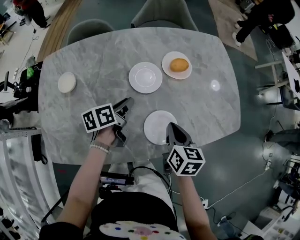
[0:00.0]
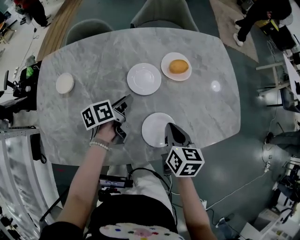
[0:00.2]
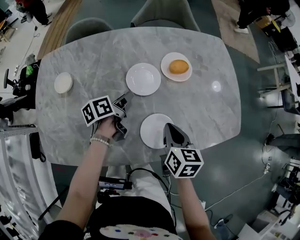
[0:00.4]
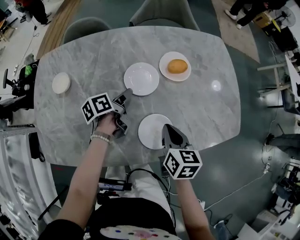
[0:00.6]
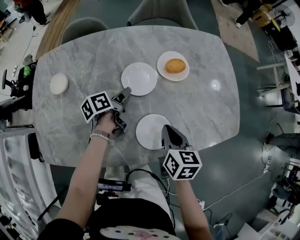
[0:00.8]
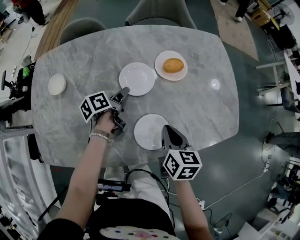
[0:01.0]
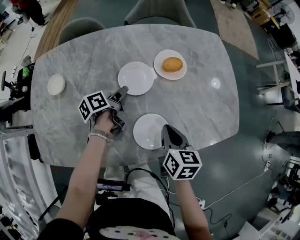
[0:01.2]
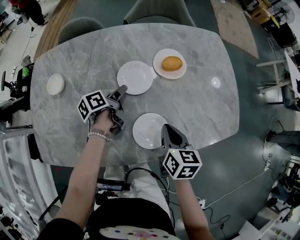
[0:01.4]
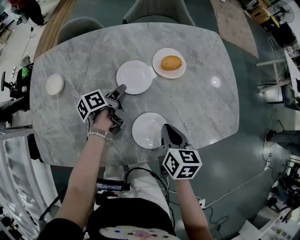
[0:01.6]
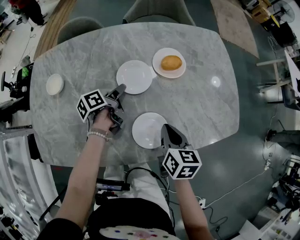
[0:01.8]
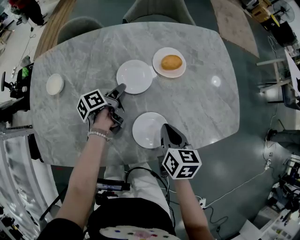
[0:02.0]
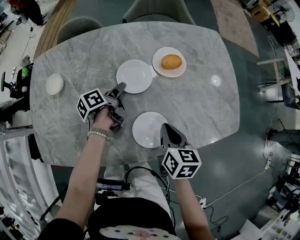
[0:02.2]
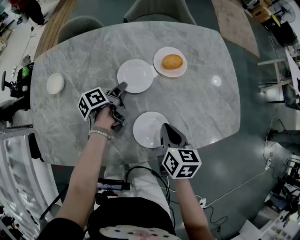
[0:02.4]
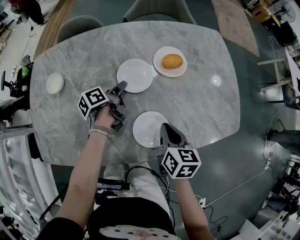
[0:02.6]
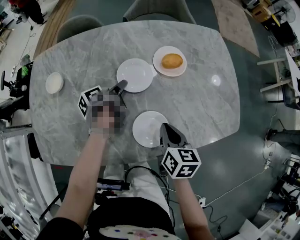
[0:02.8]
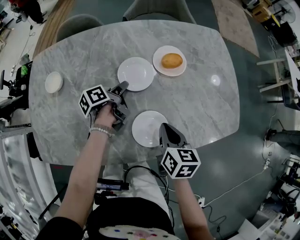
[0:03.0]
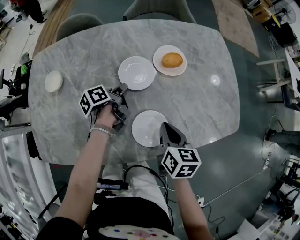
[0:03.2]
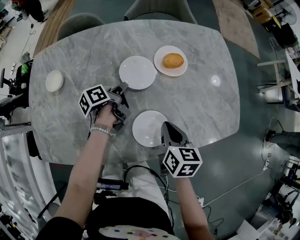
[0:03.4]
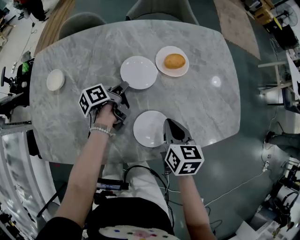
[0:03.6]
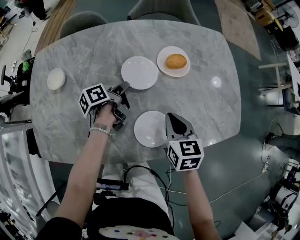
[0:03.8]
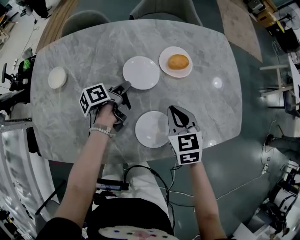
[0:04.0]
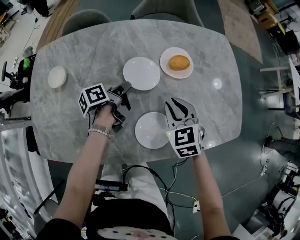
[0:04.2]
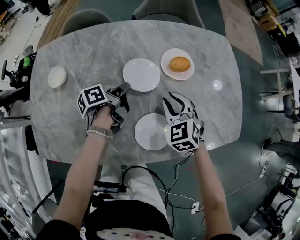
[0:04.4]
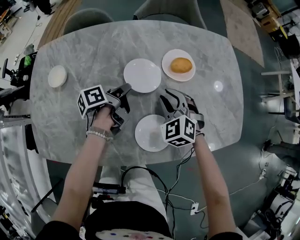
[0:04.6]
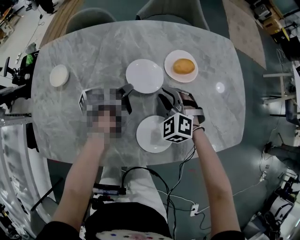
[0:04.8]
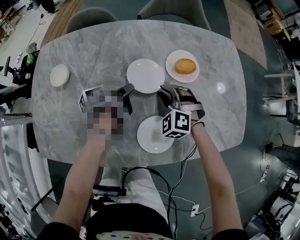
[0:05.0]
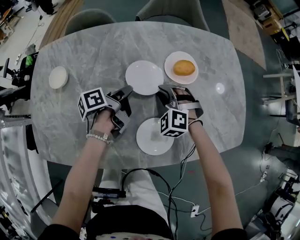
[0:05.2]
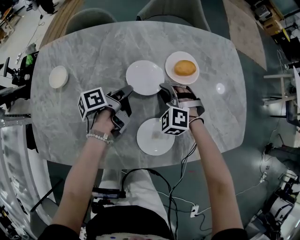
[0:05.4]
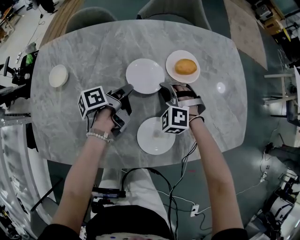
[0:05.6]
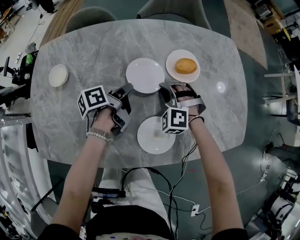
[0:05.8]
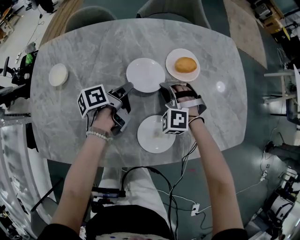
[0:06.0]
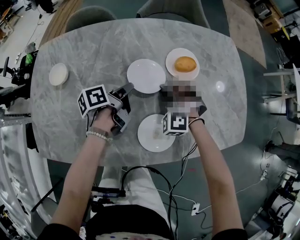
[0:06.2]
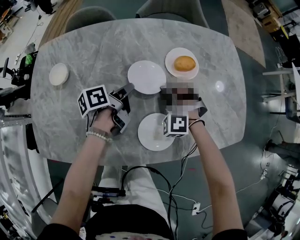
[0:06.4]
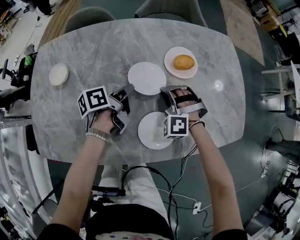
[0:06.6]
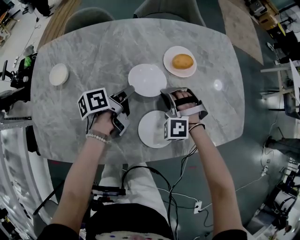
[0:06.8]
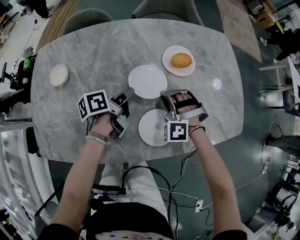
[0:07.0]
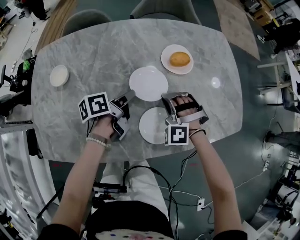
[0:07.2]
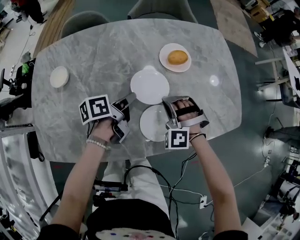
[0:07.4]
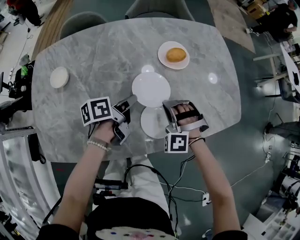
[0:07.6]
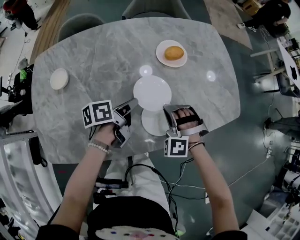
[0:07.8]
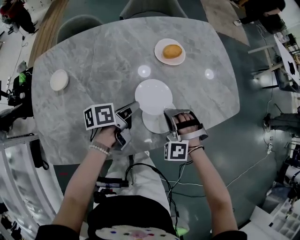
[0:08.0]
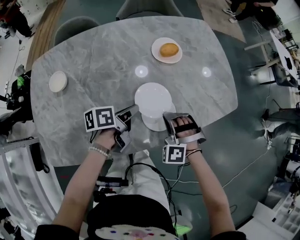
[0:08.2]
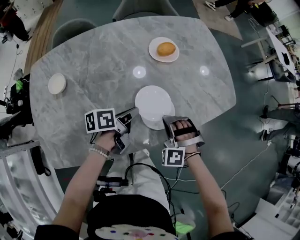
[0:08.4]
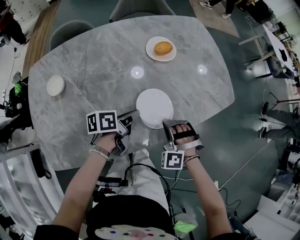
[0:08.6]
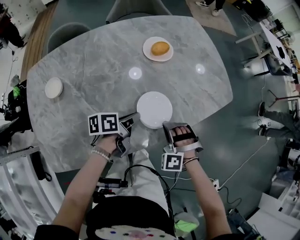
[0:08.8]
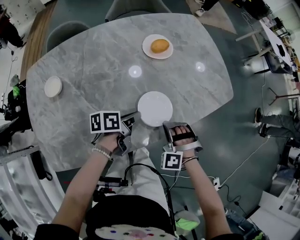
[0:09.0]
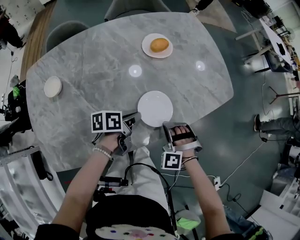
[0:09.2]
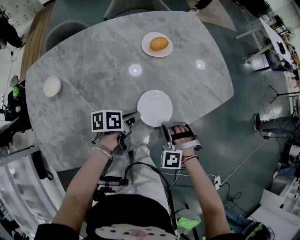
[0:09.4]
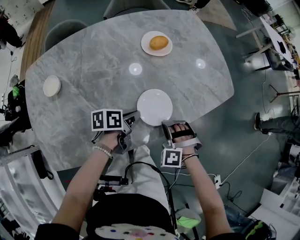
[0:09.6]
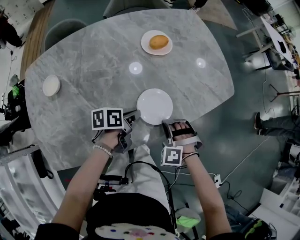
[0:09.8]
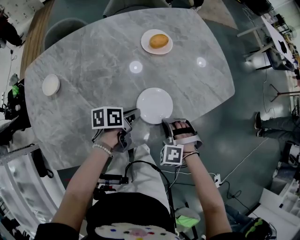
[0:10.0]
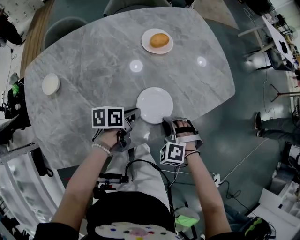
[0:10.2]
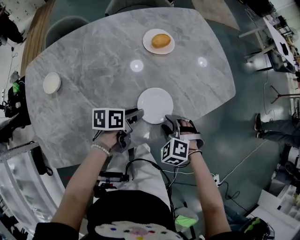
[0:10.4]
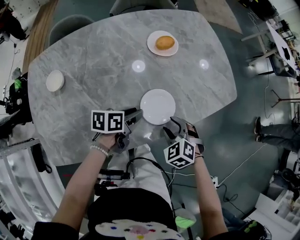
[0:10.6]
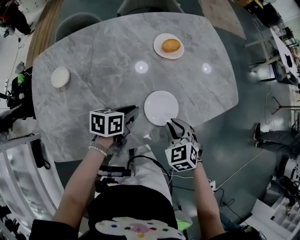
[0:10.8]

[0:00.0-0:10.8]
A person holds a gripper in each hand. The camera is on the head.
0:00.0 to 0:01.6: The left gripper is displaced forward by approximately 5 cm, and turns by roughly 20 degrees.
0:01.6 to 0:03.0: The two grippers keep their place.
0:03.0 to 0:04.6: The right gripper shifts about 10 cm forward, rolls counterclockwise, seen from behind, by about 70 degrees, and opens. Meanwhile the left gripper closes its fingers.
0:04.6 to 0:06.2: The right gripper moves roughly 5 cm, and turns by approximately 40 degrees.
0:06.2 to 0:07.8: The left gripper heads backward, covering approximately 10 cm. Meanwhile the right gripper is displaced backward and to the right by approximately 15 cm.
0:07.8 to 0:09.2: The left gripper goes some 10 cm to the right and backward, and swivels approximately 20 degrees. Meanwhile the right gripper travels backward and to the right by roughly 10 cm.
0:09.2 to 0:10.8: The left gripper changes place by about 5 cm, while the right gripper twists some 50 degrees clockwise, seen from behind, and opens, then closes once more.

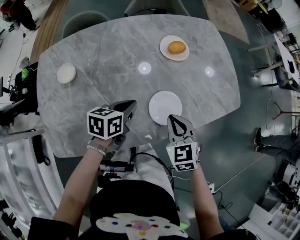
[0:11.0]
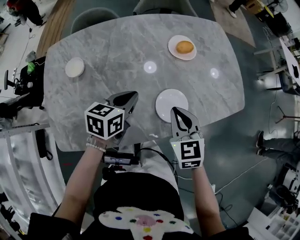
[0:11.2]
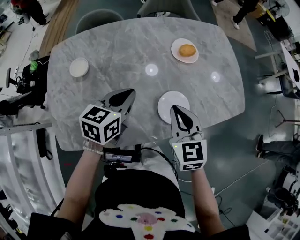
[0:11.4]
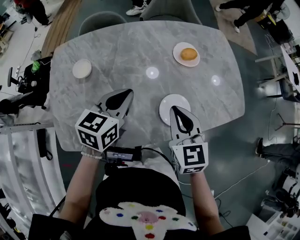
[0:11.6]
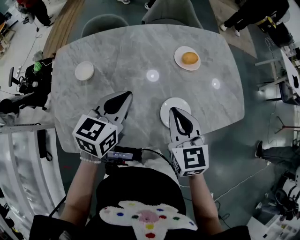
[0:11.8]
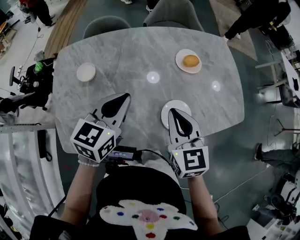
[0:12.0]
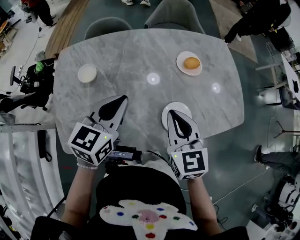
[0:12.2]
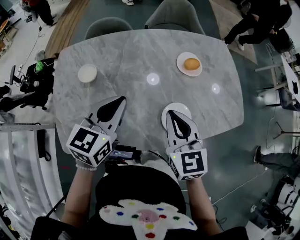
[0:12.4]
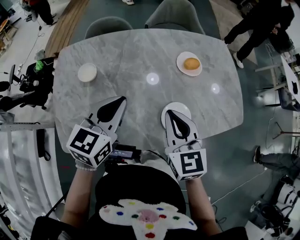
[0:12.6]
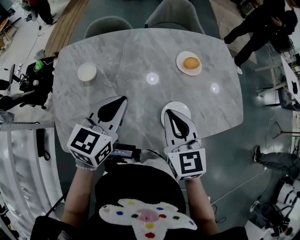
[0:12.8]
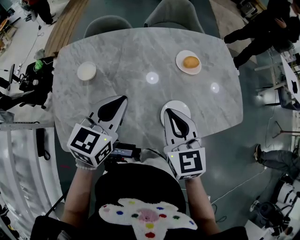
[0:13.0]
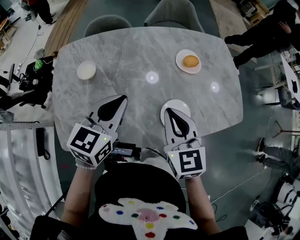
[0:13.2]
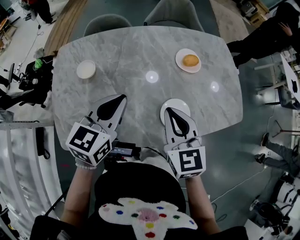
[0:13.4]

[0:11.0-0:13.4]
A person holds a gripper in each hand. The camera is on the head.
0:11.0 to 0:12.2: The two grippers go some 20 cm upward and to the left. The left gripper swivels roughly 30 degrees.
0:12.2 to 0:13.4: The grippers make only small movements.

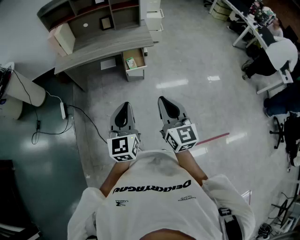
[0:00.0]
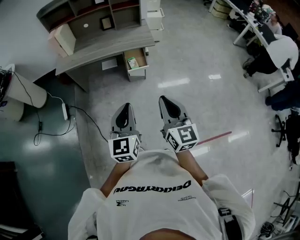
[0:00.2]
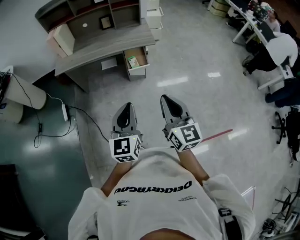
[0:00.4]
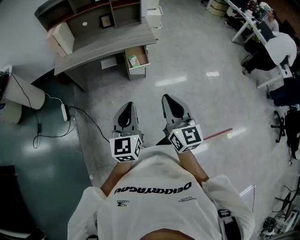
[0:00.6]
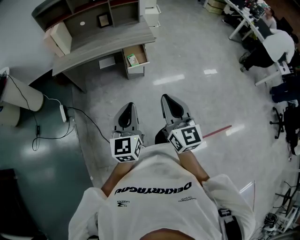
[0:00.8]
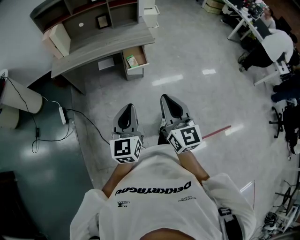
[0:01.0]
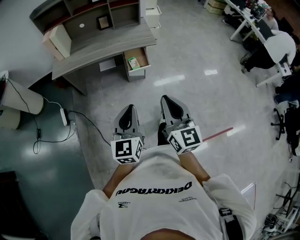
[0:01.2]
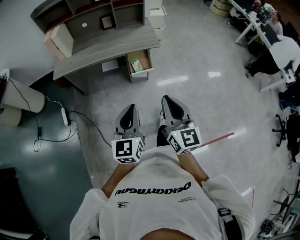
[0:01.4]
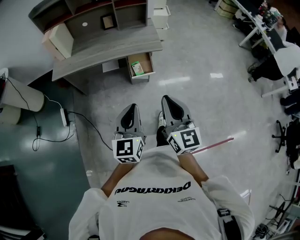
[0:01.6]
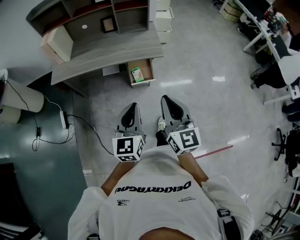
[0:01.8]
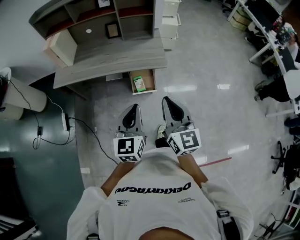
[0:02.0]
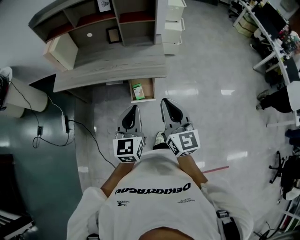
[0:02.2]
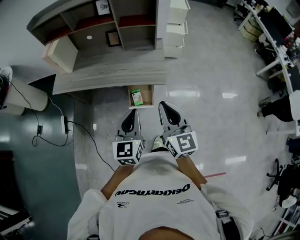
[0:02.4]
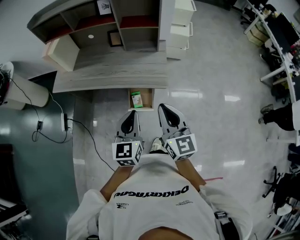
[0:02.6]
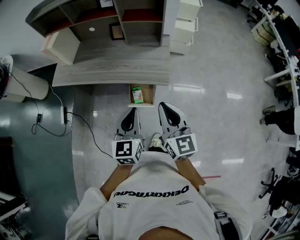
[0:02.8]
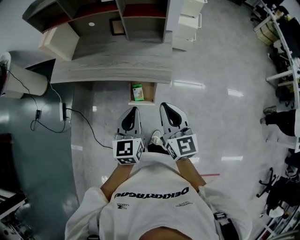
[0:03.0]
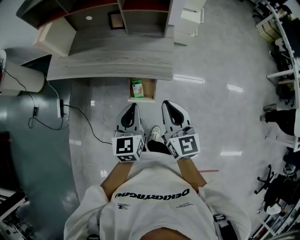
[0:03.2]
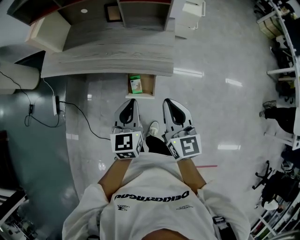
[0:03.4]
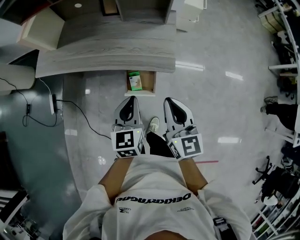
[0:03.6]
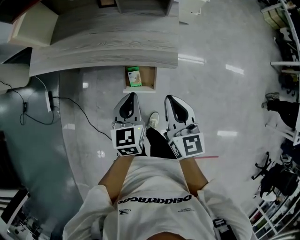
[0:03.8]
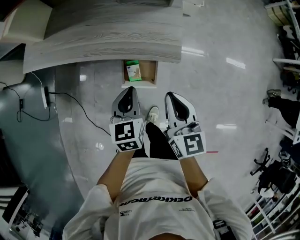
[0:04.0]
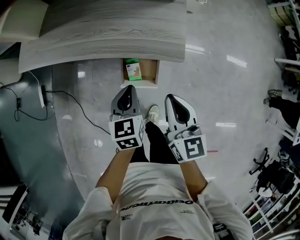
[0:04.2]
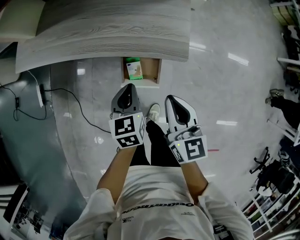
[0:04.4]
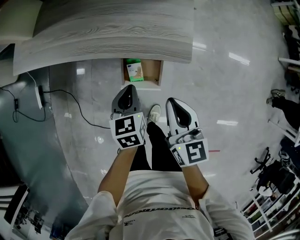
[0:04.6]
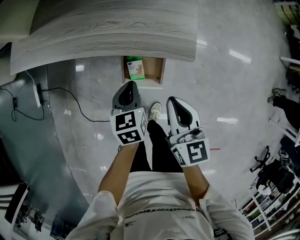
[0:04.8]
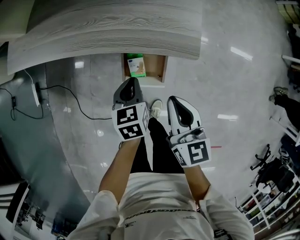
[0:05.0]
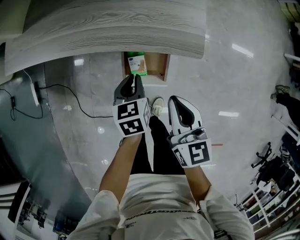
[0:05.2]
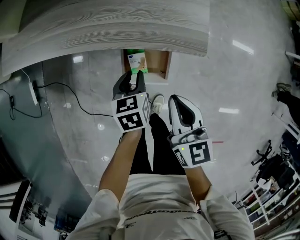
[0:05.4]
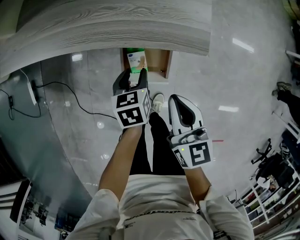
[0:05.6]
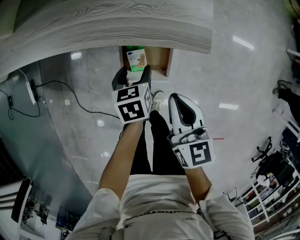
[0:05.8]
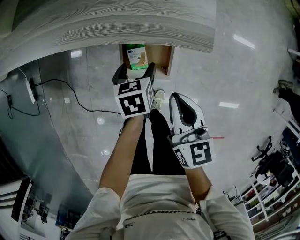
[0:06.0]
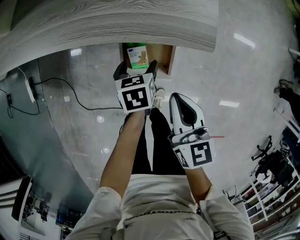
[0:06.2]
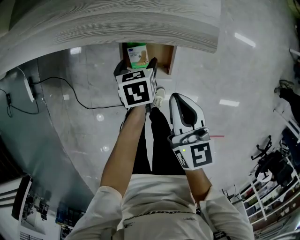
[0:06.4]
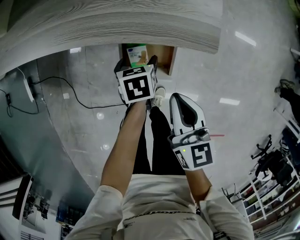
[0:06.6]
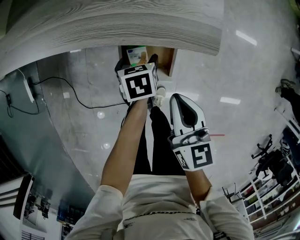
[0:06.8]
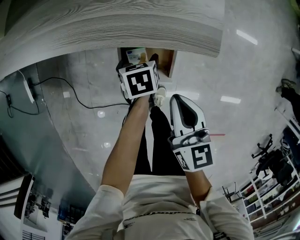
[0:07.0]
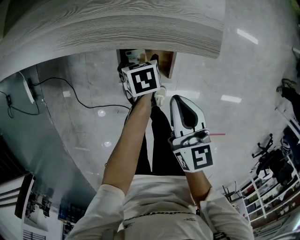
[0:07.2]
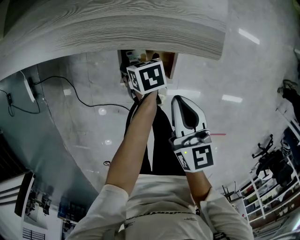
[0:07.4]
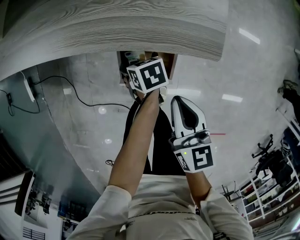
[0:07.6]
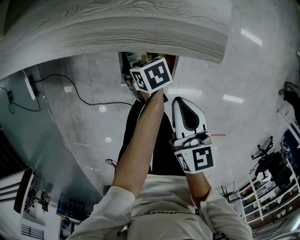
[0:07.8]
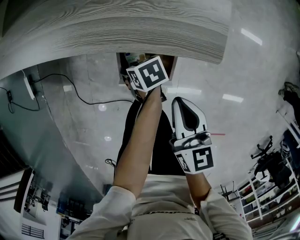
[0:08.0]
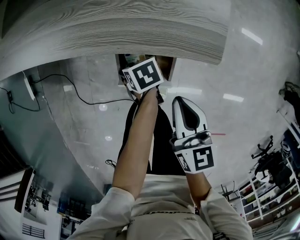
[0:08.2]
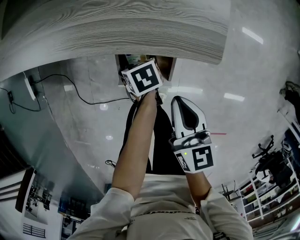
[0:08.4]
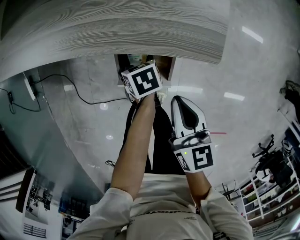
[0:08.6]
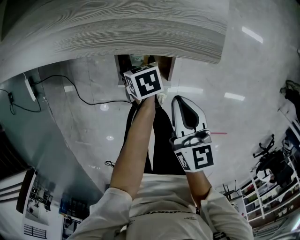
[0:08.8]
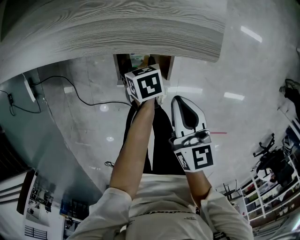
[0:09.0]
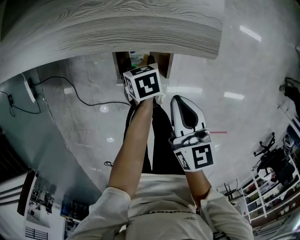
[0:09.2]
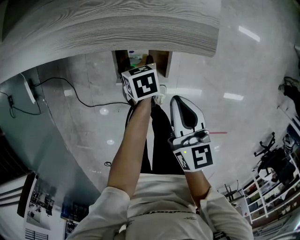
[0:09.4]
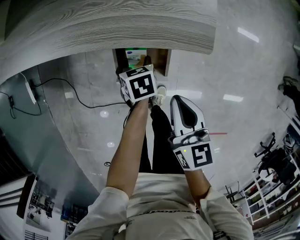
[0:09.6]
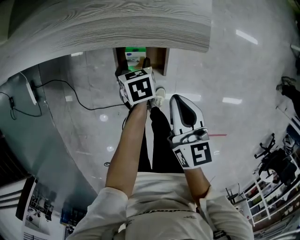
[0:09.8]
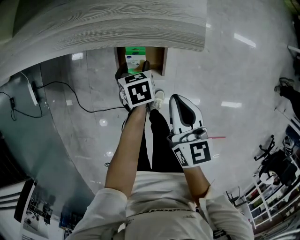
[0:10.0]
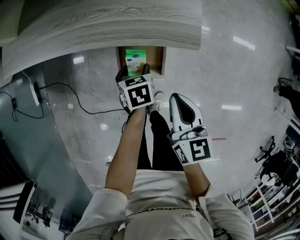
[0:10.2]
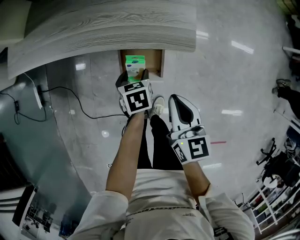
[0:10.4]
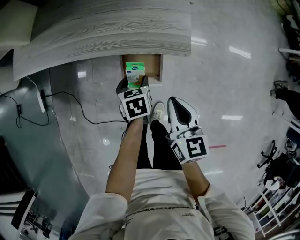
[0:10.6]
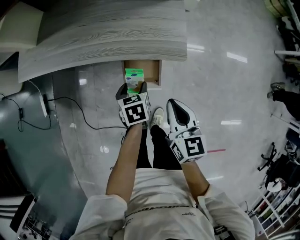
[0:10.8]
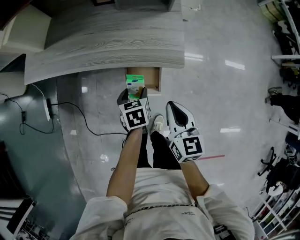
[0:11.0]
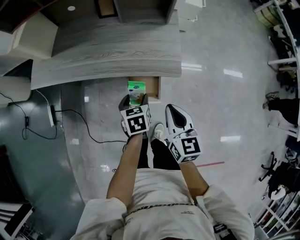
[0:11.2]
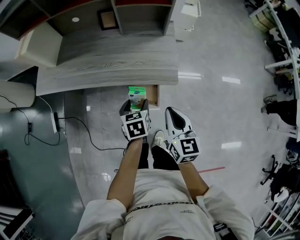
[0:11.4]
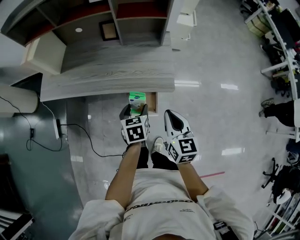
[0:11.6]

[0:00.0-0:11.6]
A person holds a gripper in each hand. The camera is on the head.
0:00.0 to 0:01.4: Both grippers move forward, about 10 cm.
0:01.4 to 0:02.8: The left gripper moves forward and to the right, roughly 40 cm, while the right gripper is displaced forward by approximately 40 cm.
0:02.8 to 0:04.4: The right gripper moves downward, approximately 25 cm; the left gripper heads downward and forward, covering some 30 cm, and changes its angle by some 20 degrees.
0:04.4 to 0:05.8: The left gripper shifts approximately 15 cm downward, and opens its fingers. Meanwhile the right gripper is displaced downward by some 10 cm.
0:05.8 to 0:07.2: The left gripper moves downward, approximately 10 cm.
0:07.2 to 0:08.8: The grippers stay close to where they were, moving slightly.
0:08.8 to 0:10.2: The grippers both shift upward by some 10 cm.
0:10.2 to 0:11.6: Both grippers move upward, approximately 20 cm.
